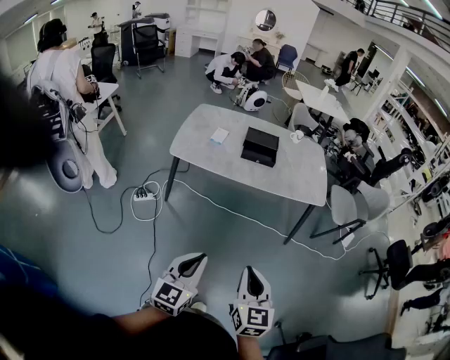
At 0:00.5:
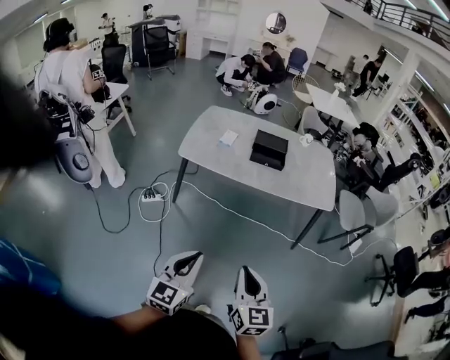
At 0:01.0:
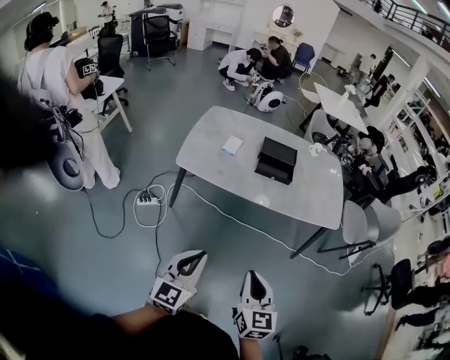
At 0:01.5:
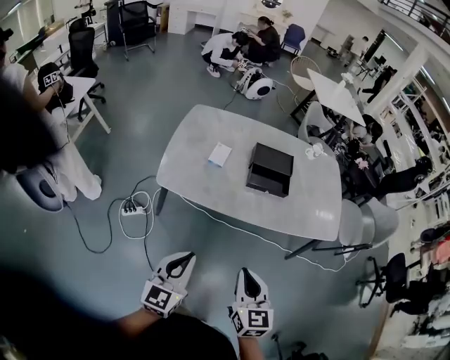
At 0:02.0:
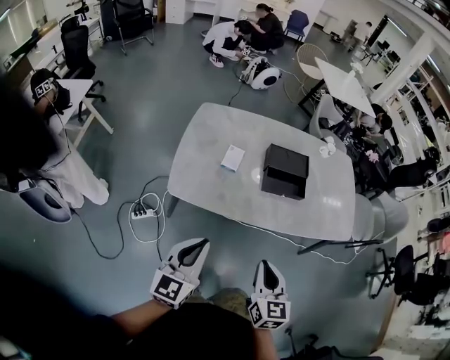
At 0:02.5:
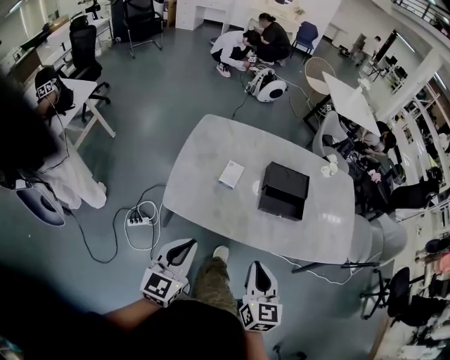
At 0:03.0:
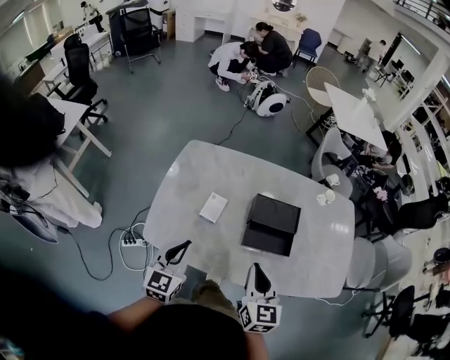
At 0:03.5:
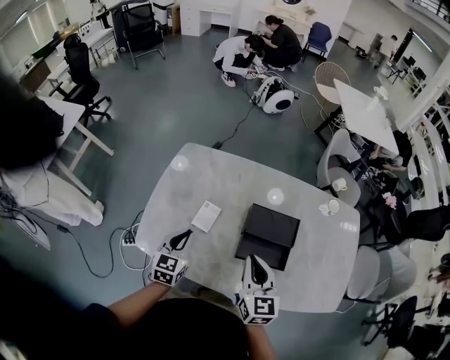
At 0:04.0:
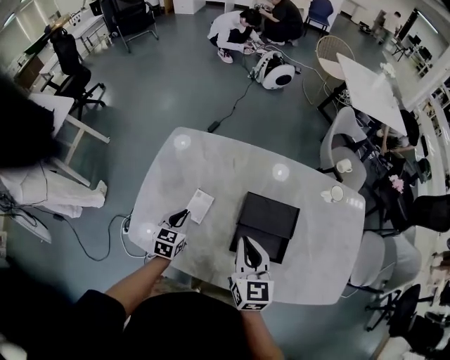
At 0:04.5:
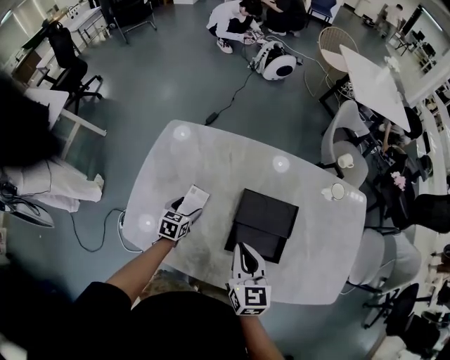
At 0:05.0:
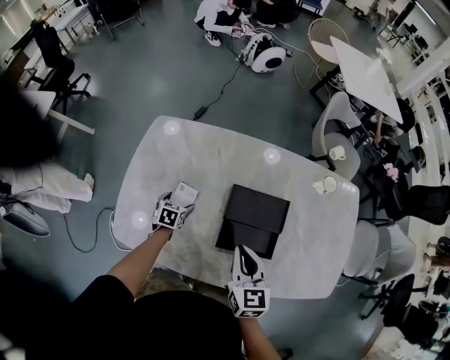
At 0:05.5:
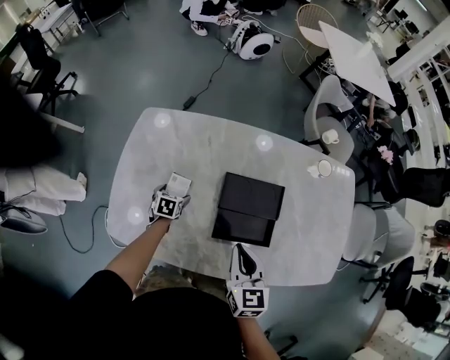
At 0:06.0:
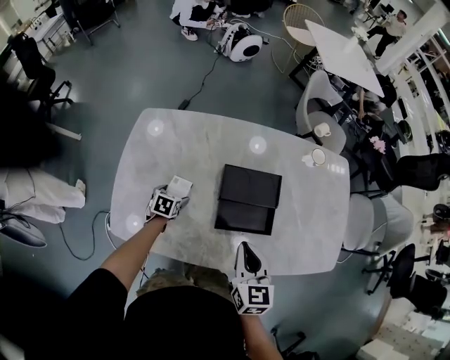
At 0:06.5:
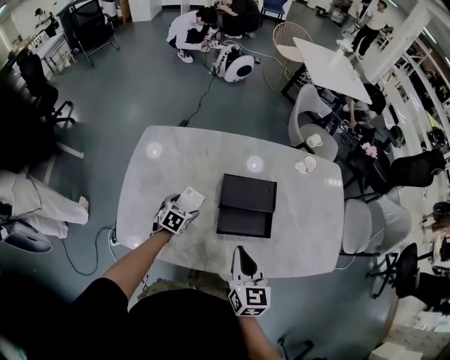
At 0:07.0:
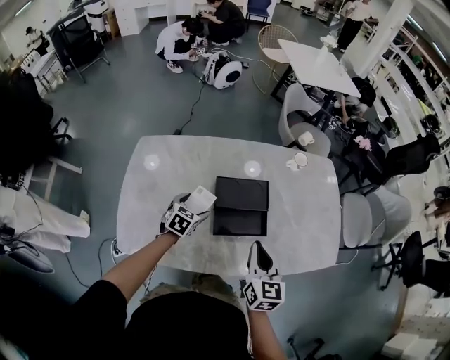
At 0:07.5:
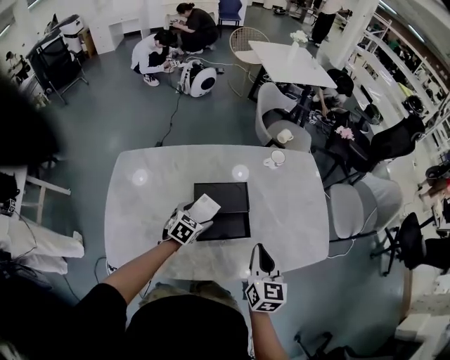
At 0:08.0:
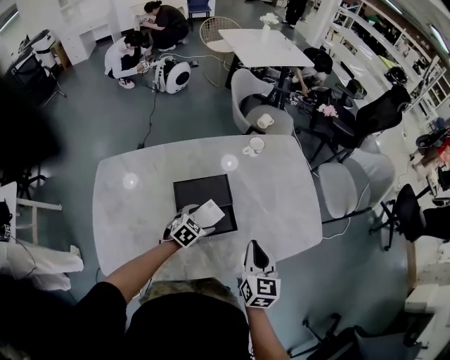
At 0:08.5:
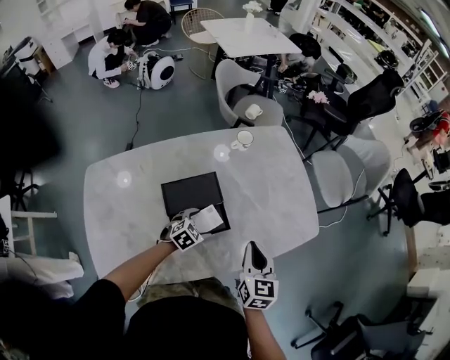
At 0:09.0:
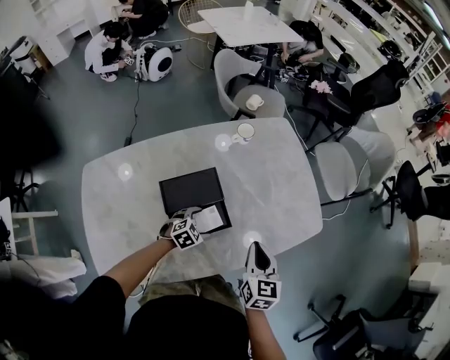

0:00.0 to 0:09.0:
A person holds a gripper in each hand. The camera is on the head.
0:00.0 to 0:02.0: The pair of grippers is taken forward and to the left, about 50 cm.
0:02.0 to 0:04.5: The pair of grippers is taken forward, about 40 cm. The left gripper shifts about 30 cm downward, points its fingers about 40 degrees further downward, and opens its fingers.
0:04.5 to 0:07.0: The right gripper goes about 15 cm to the right and backward, and turns by some 20 degrees. The left gripper shifts approximately 15 cm to the right and upward, and rotates approximately 30 degrees.
0:07.0 to 0:09.0: The left gripper changes place by some 25 cm, and swivels roughly 50 degrees. Meanwhile the right gripper ends up about 15 cm from where it was, and swivels approximately 20 degrees.

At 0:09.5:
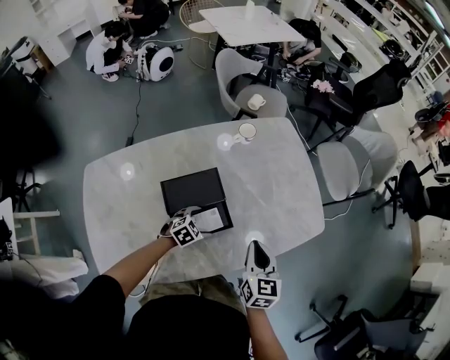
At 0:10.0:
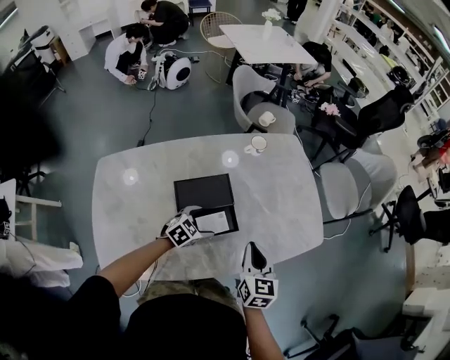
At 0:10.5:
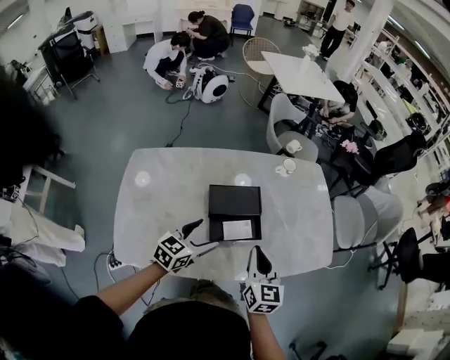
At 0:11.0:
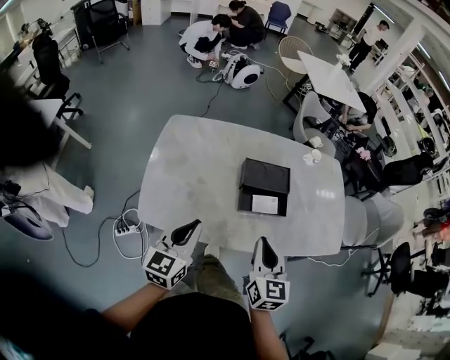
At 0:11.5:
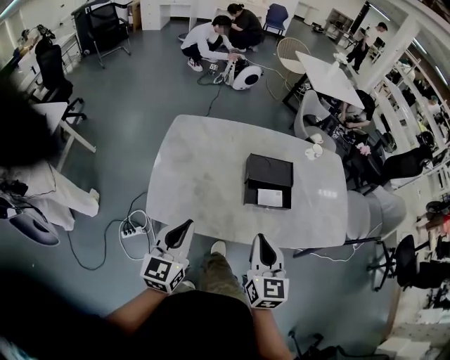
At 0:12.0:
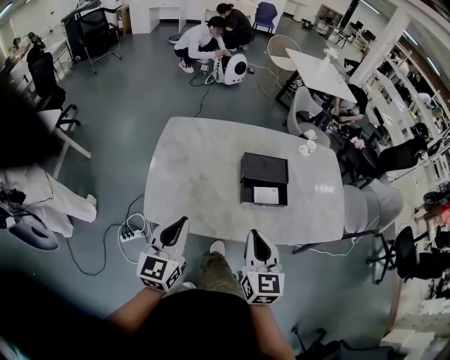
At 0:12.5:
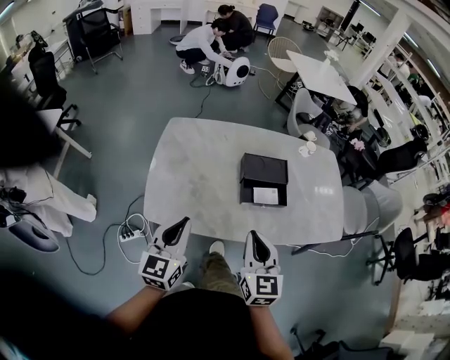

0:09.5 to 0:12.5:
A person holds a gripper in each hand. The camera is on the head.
0:09.5 to 0:11.0: The left gripper ends up approximately 50 cm from where it was, angles its fingers upward, by about 50 degrees, and closes its fingers. Meanwhile the right gripper changes place by some 30 cm, and turns by approximately 30 degrees.
0:11.0 to 0:12.5: The left gripper is displaced backward by about 5 cm. Meanwhile the right gripper heads to the left and backward, covering roughly 5 cm.

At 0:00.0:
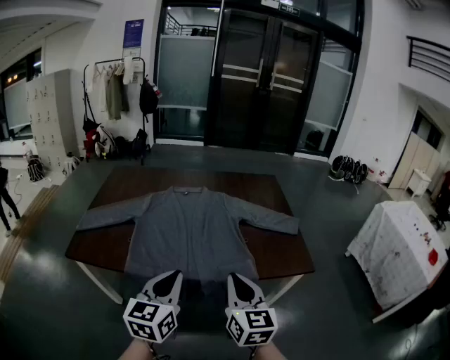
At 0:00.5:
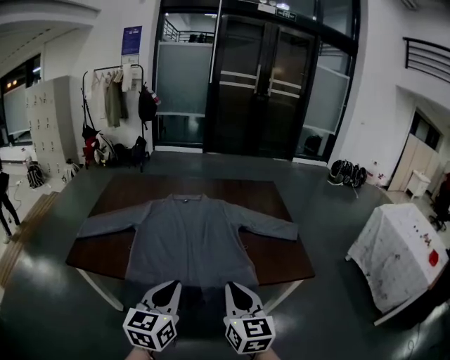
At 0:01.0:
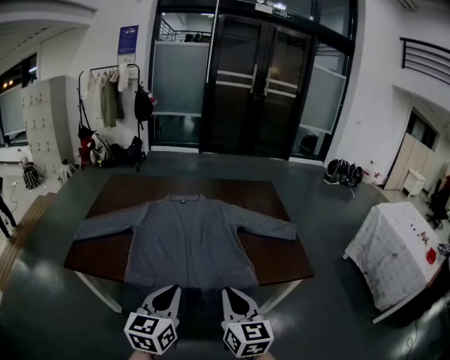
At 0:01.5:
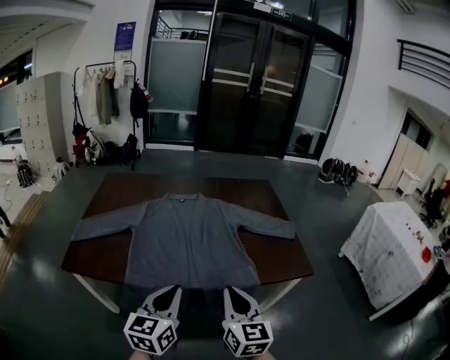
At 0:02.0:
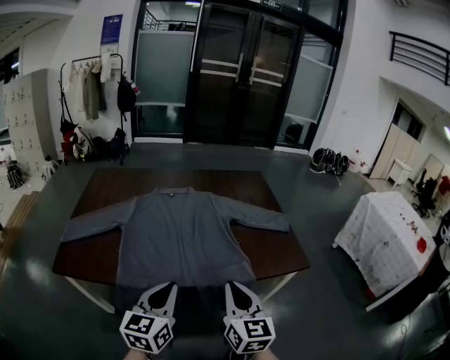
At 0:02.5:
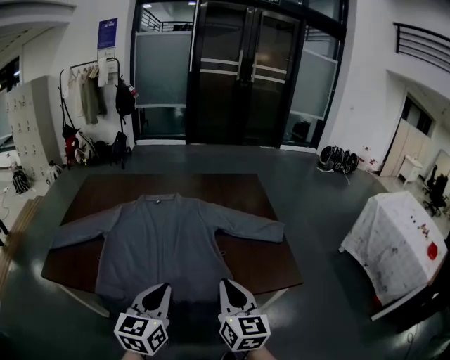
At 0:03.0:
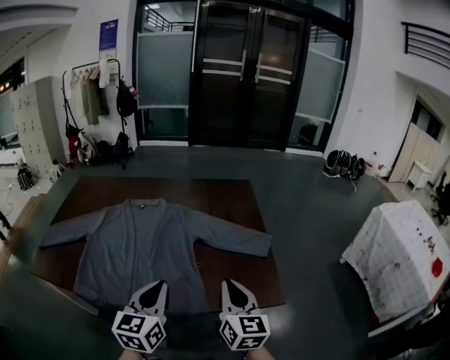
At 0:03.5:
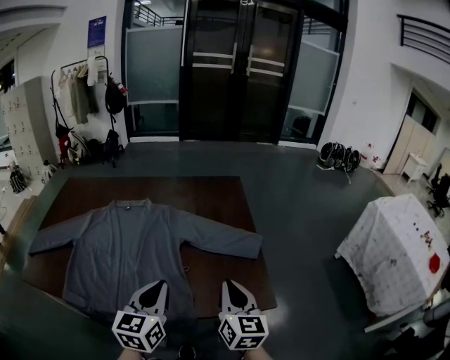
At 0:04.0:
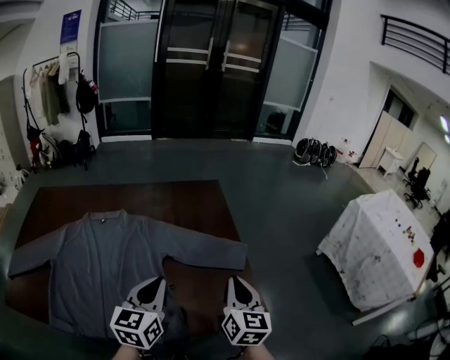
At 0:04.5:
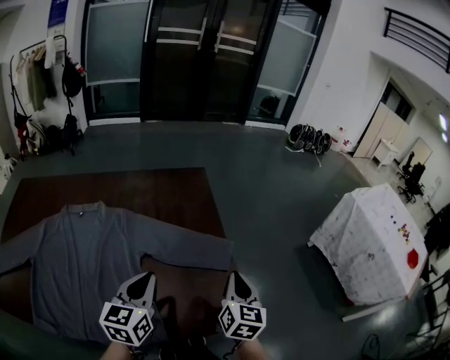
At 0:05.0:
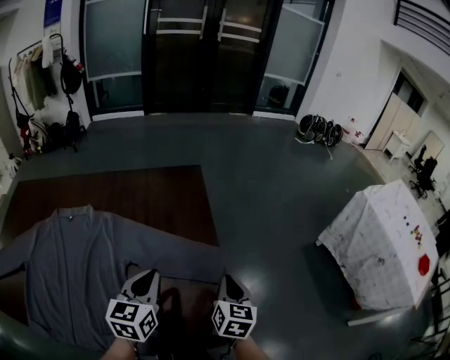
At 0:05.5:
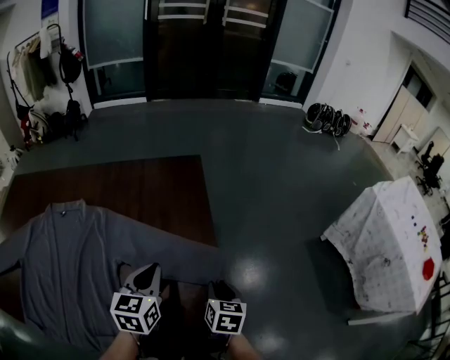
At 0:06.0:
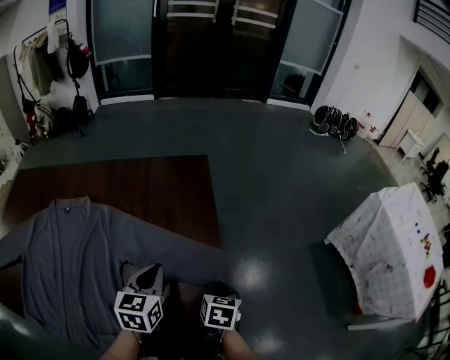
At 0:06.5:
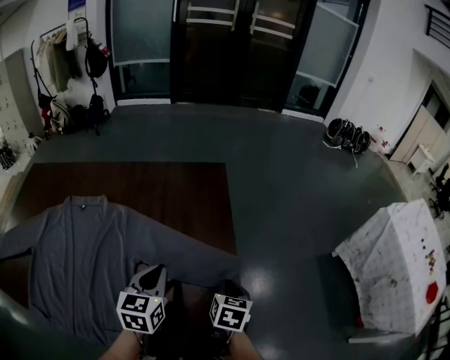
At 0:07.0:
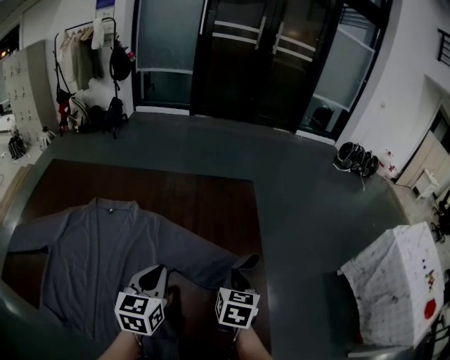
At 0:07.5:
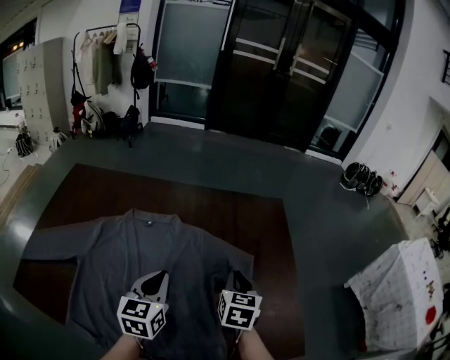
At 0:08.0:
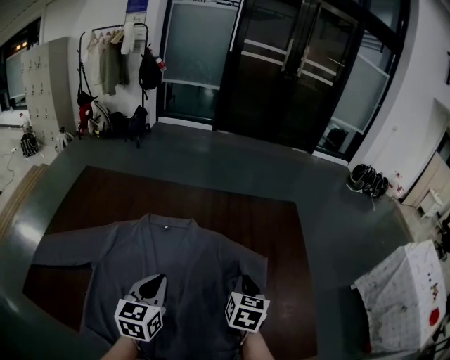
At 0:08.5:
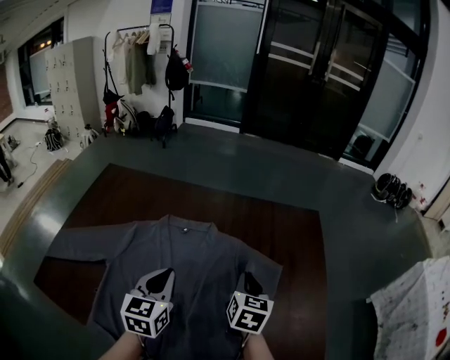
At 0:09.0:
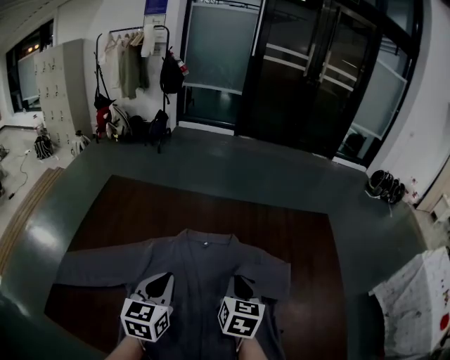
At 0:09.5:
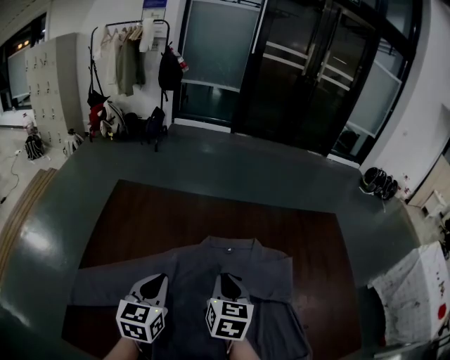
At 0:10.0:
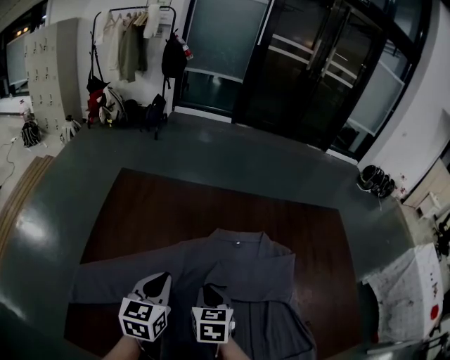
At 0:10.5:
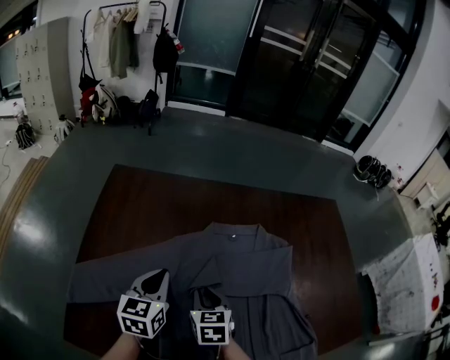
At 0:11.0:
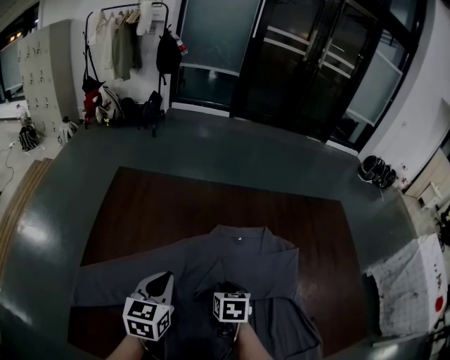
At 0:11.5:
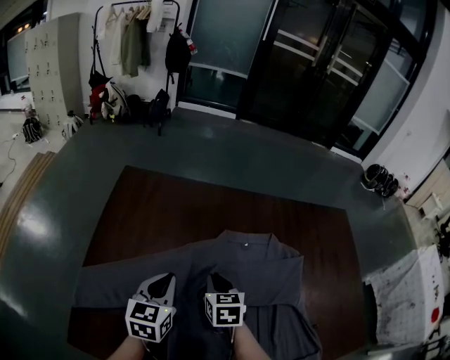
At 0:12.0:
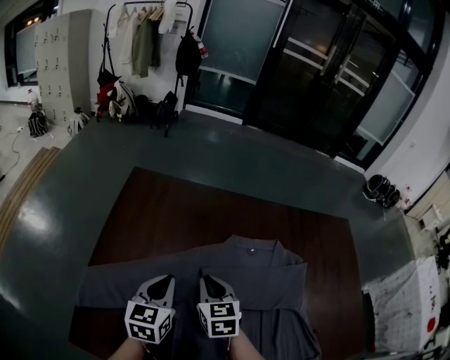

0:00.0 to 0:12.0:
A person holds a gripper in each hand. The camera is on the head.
0:00.0 to 0:02.0: There are only small adjustments of the grippers.
0:02.0 to 0:04.0: The left gripper travels forward and to the right by approximately 35 cm. The right gripper is displaced to the right and forward by about 40 cm.
0:04.0 to 0:06.0: The left gripper heads forward, downward and to the right, covering about 25 cm; the right gripper heads downward and forward, covering roughly 25 cm, and angles its fingers downward, by some 40 degrees.
0:06.0 to 0:08.0: The right gripper shifts some 35 cm to the left and upward, and changes its angle by about 20 degrees; the left gripper moves to the left, some 35 cm.
0:08.0 to 0:10.0: Both grippers travel together to the left, some 35 cm.
0:10.0 to 0:12.0: The right gripper is displaced to the left by approximately 5 cm.

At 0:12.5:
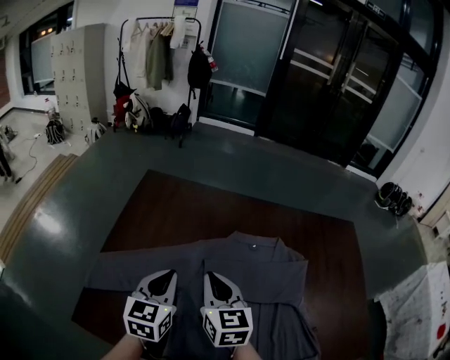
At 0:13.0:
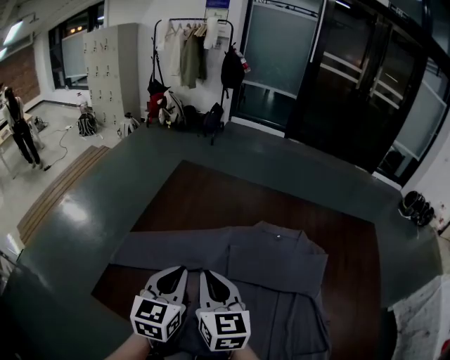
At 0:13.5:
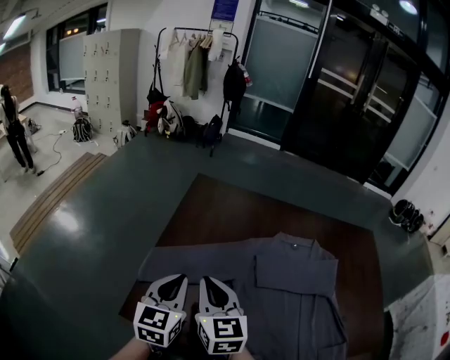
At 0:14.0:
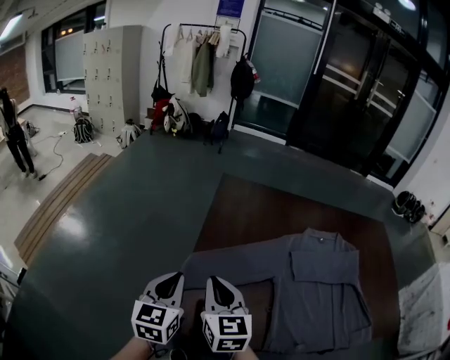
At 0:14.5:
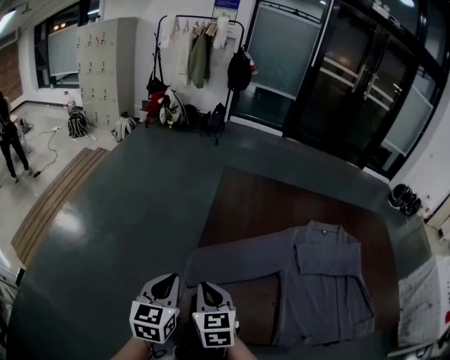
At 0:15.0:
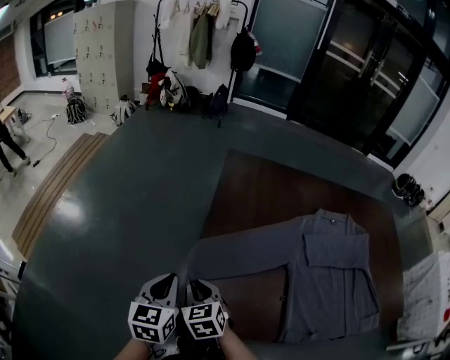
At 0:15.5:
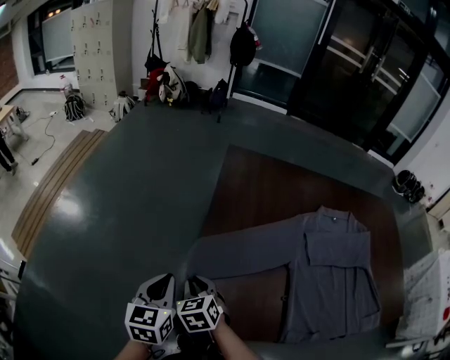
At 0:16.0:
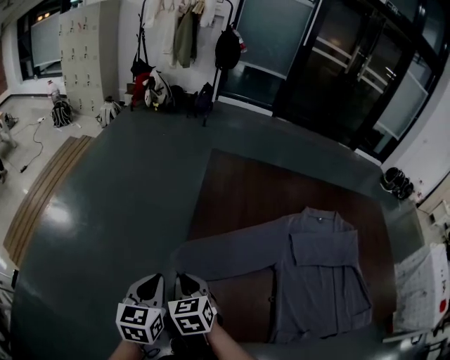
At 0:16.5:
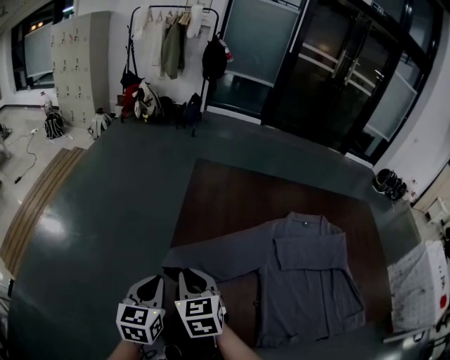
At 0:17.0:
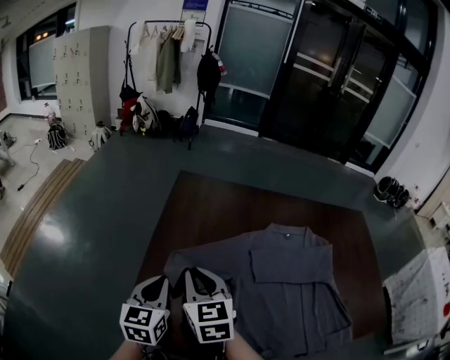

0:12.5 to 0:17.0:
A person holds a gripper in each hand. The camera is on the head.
0:12.5 to 0:14.5: The grippers both shift to the left by about 40 cm.
0:14.5 to 0:17.0: The right gripper is displaced to the right and upward by about 15 cm. Meanwhile the left gripper moves to the right, approximately 15 cm.
